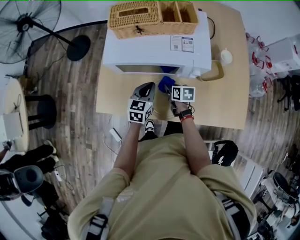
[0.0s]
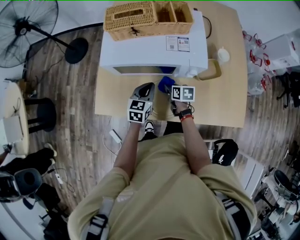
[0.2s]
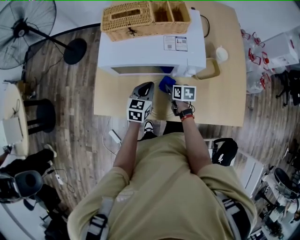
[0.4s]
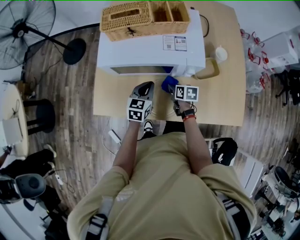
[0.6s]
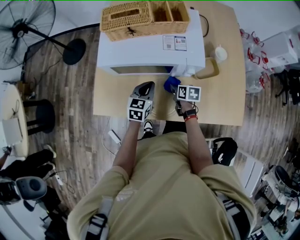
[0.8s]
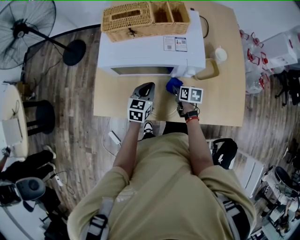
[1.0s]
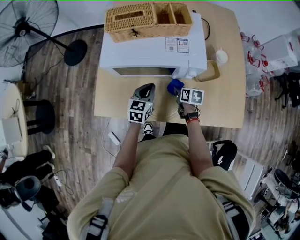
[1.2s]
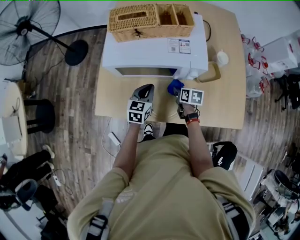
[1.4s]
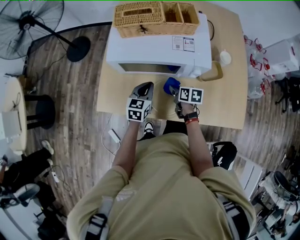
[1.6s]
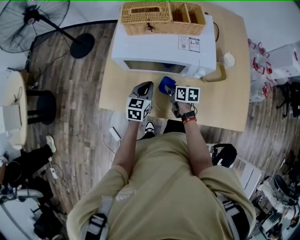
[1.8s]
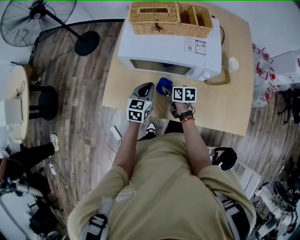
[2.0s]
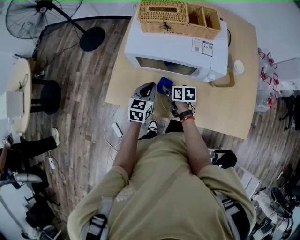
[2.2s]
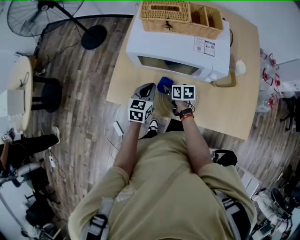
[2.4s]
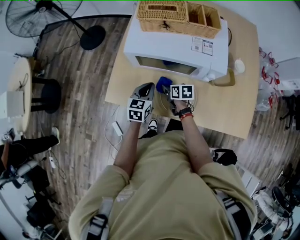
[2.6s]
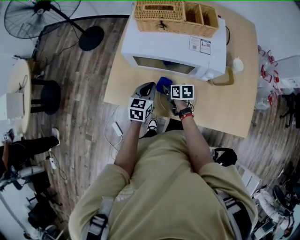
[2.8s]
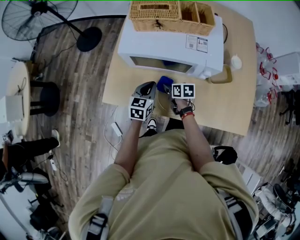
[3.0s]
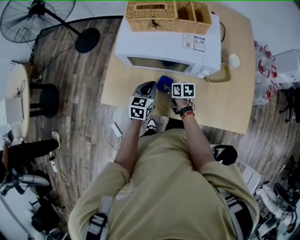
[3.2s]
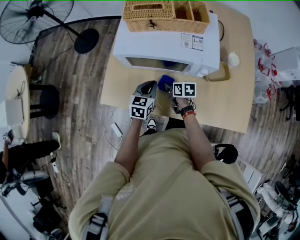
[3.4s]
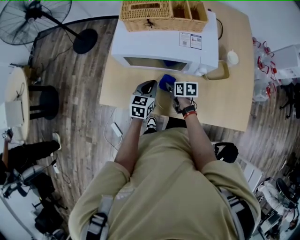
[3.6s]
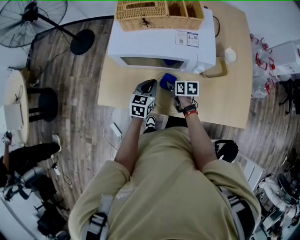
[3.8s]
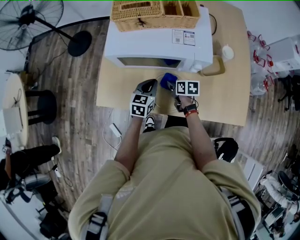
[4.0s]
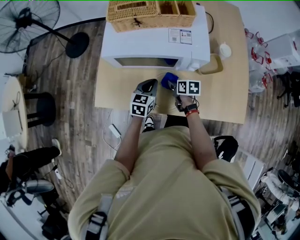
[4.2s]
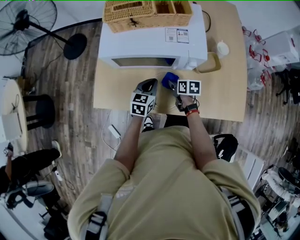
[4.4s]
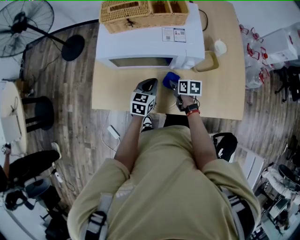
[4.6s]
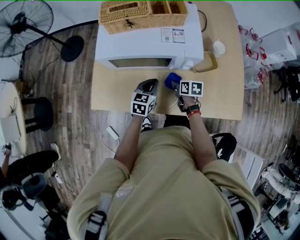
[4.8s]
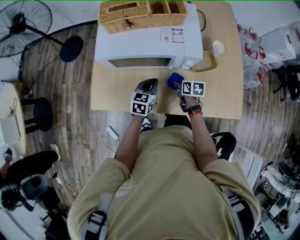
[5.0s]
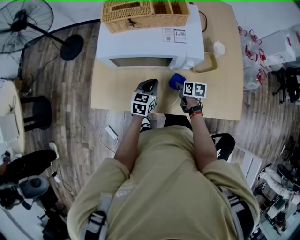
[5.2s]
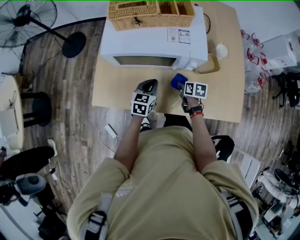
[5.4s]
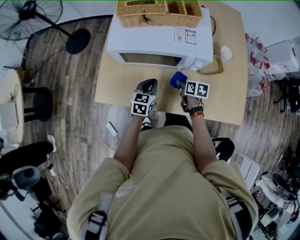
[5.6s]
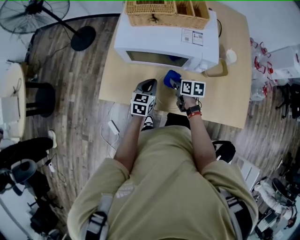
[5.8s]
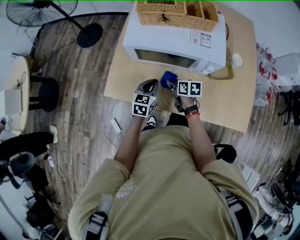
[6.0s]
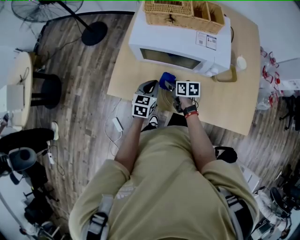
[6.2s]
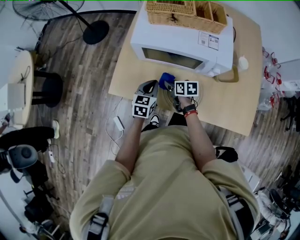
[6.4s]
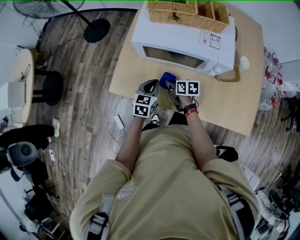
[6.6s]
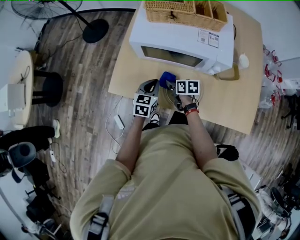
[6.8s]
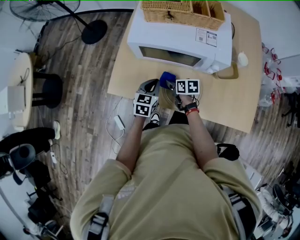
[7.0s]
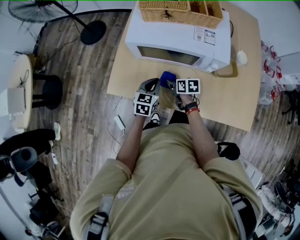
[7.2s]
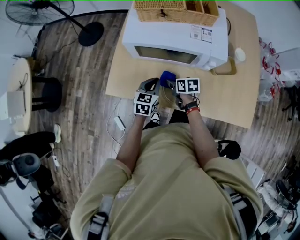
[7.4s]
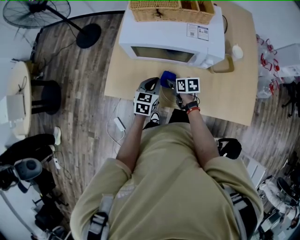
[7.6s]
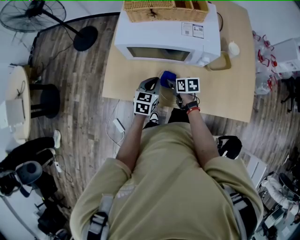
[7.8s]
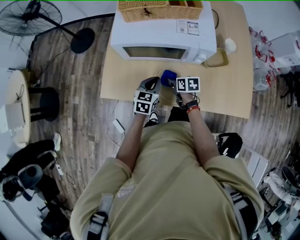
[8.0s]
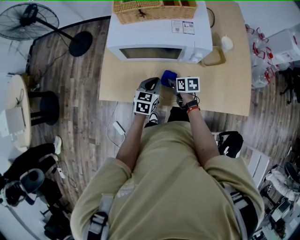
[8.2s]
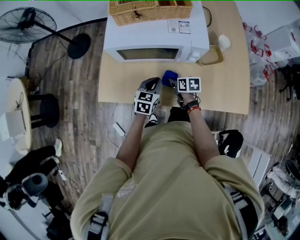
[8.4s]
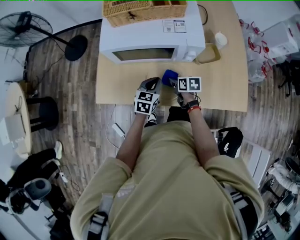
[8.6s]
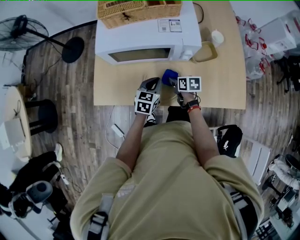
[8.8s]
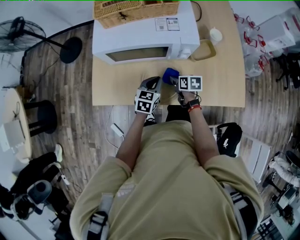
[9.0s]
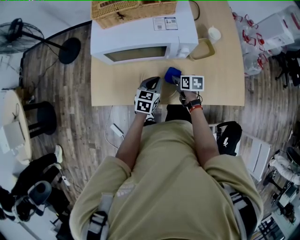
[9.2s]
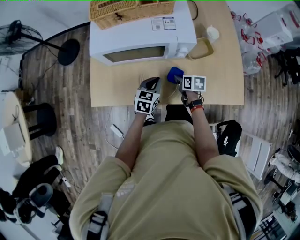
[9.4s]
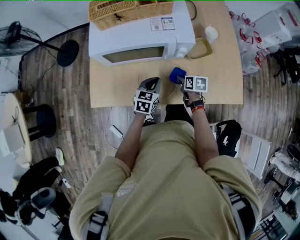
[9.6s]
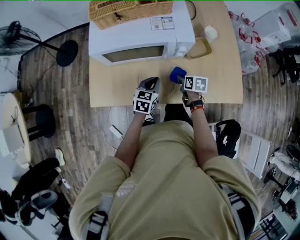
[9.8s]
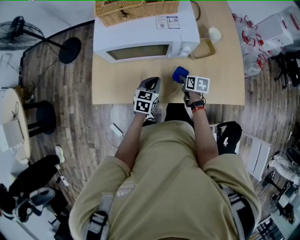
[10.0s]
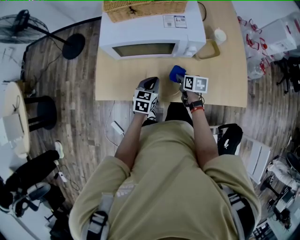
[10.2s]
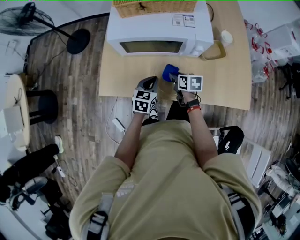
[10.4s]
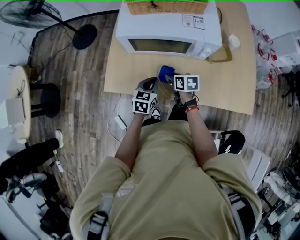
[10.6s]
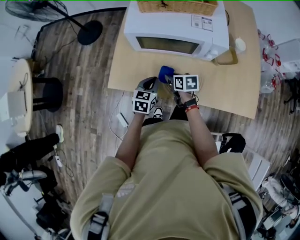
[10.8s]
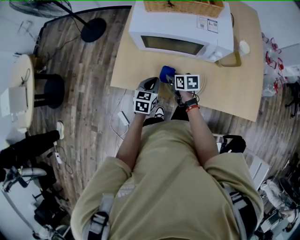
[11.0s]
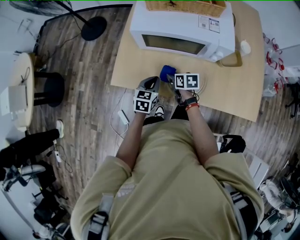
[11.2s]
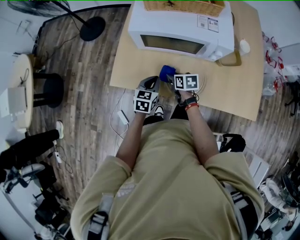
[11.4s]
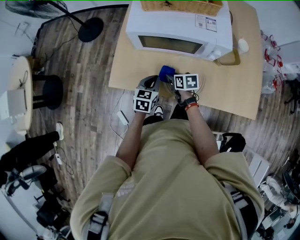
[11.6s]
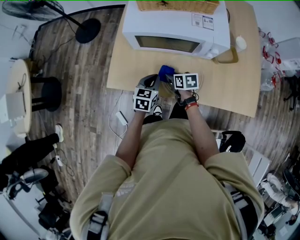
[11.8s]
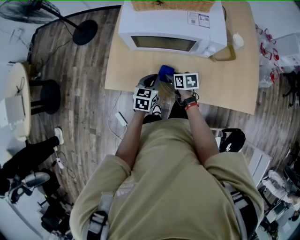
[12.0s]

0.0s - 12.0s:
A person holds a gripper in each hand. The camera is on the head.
1.6s - 3.0s: The right gripper is displaced to the left by about 10 cm.
3.0s - 4.4s: Both grippers move to the right, roughly 10 cm.
4.4s - 6.0s: Both grippers travel together to the left, roughly 10 cm.
6.0s - 7.6s: There are only small adjustments of the grippers.
7.6s - 9.0s: Both grippers move to the right, some 10 cm.
9.0s - 10.4s: Both grippers move to the left, some 5 cm.
10.4s - 12.0s: The right gripper moves to the left, roughly 5 cm.

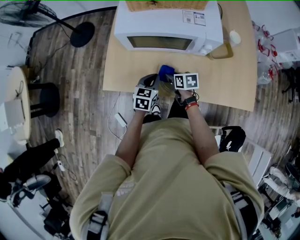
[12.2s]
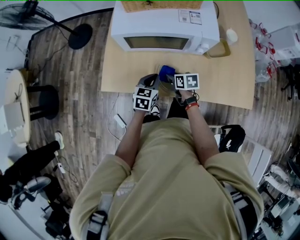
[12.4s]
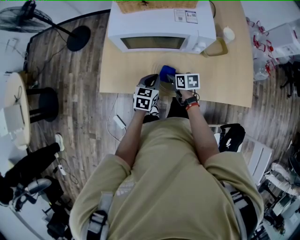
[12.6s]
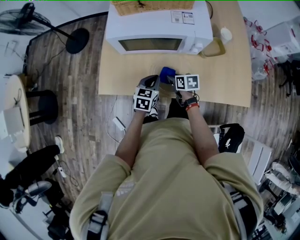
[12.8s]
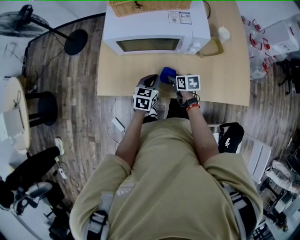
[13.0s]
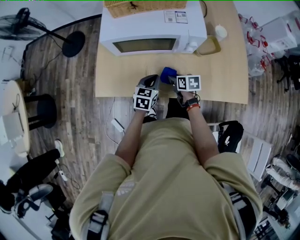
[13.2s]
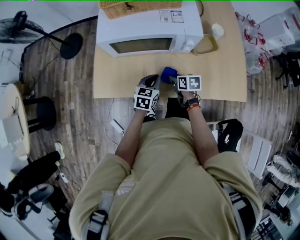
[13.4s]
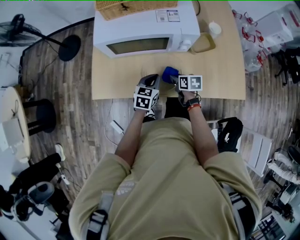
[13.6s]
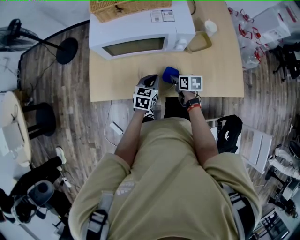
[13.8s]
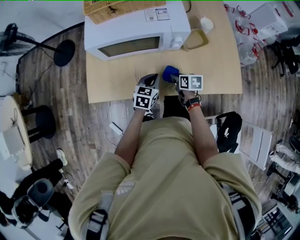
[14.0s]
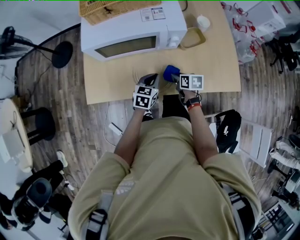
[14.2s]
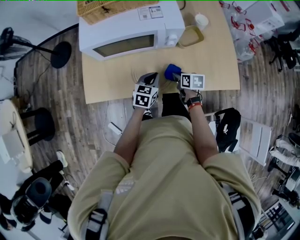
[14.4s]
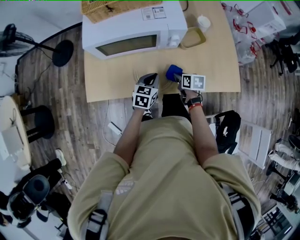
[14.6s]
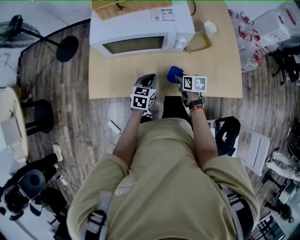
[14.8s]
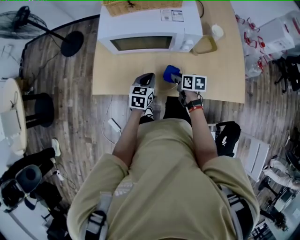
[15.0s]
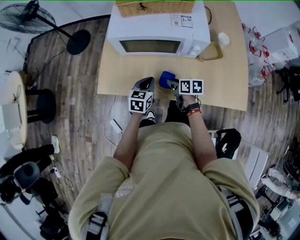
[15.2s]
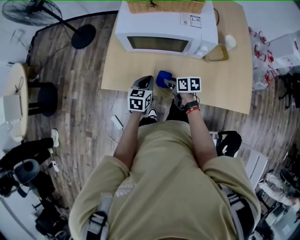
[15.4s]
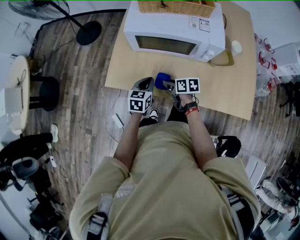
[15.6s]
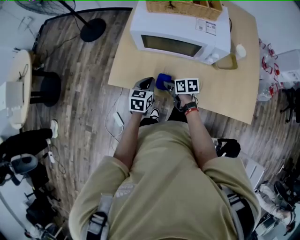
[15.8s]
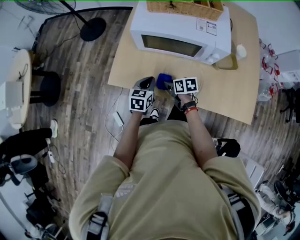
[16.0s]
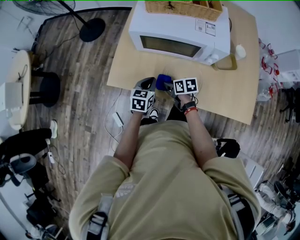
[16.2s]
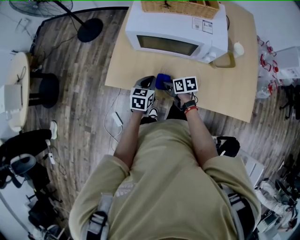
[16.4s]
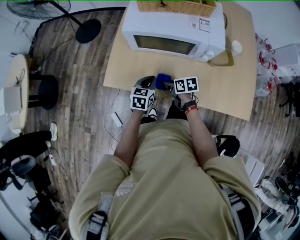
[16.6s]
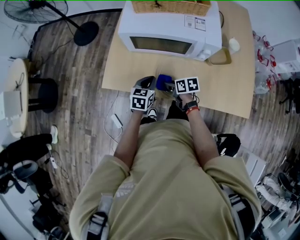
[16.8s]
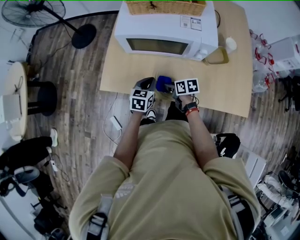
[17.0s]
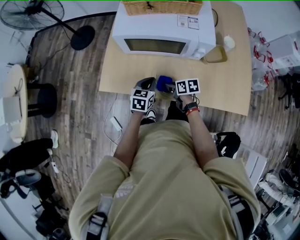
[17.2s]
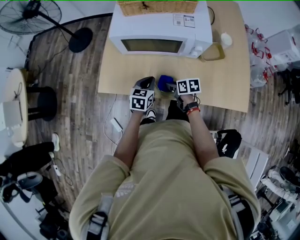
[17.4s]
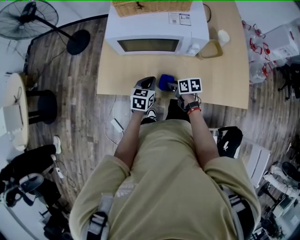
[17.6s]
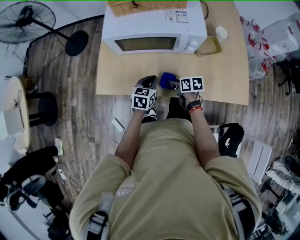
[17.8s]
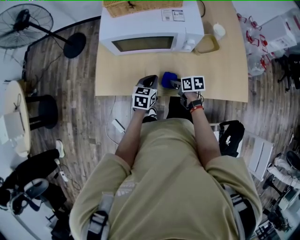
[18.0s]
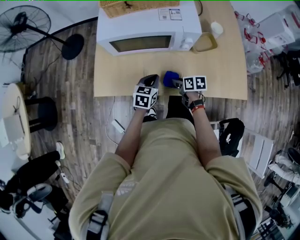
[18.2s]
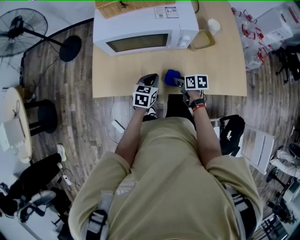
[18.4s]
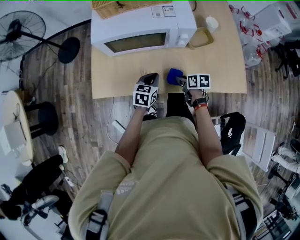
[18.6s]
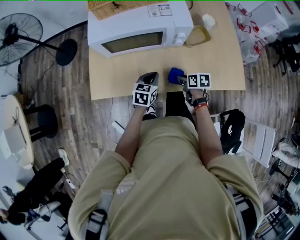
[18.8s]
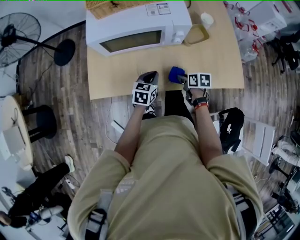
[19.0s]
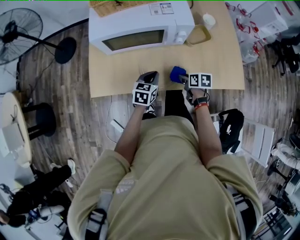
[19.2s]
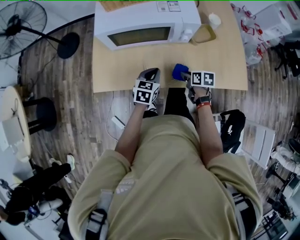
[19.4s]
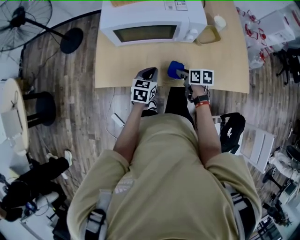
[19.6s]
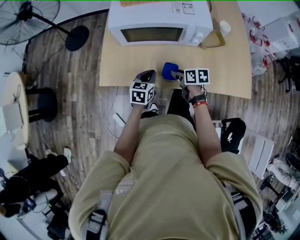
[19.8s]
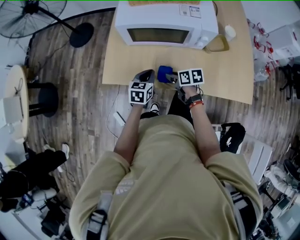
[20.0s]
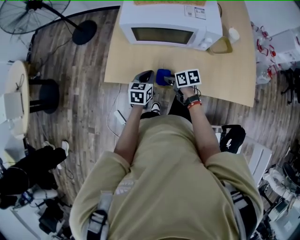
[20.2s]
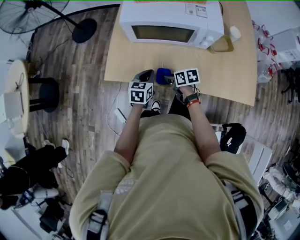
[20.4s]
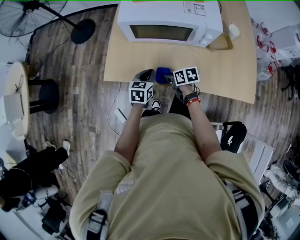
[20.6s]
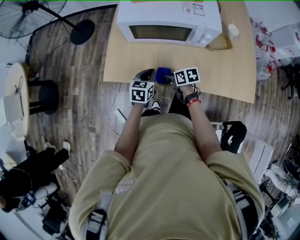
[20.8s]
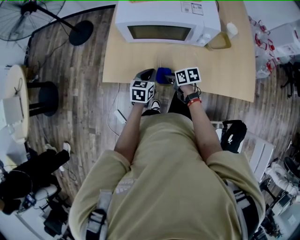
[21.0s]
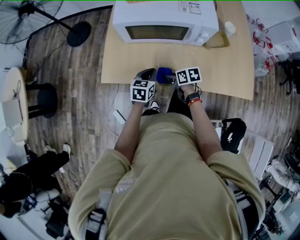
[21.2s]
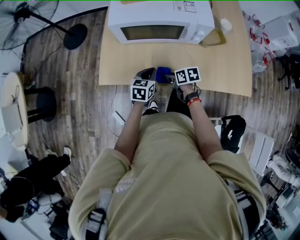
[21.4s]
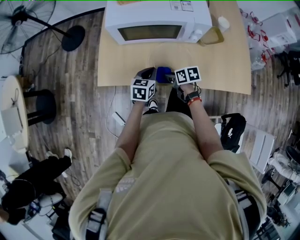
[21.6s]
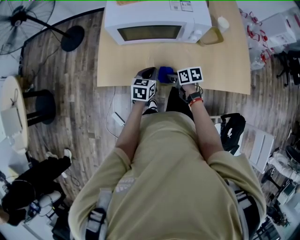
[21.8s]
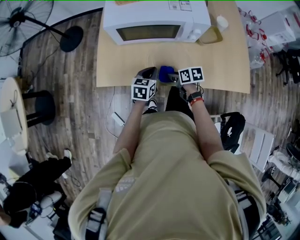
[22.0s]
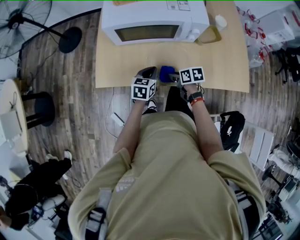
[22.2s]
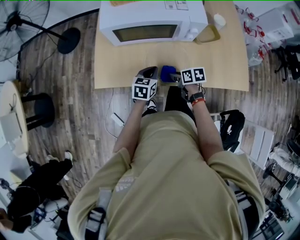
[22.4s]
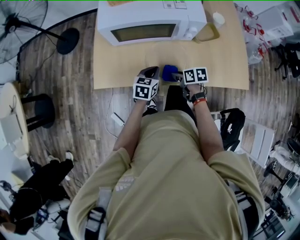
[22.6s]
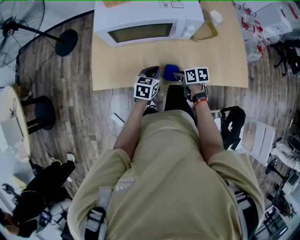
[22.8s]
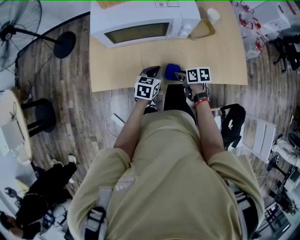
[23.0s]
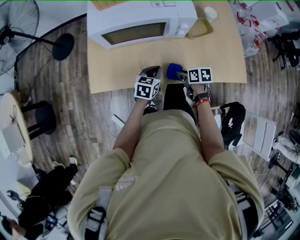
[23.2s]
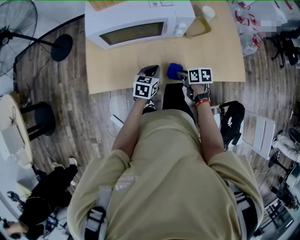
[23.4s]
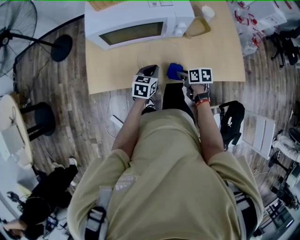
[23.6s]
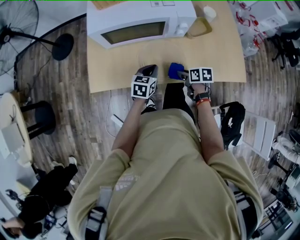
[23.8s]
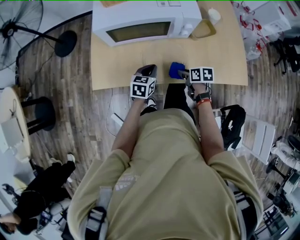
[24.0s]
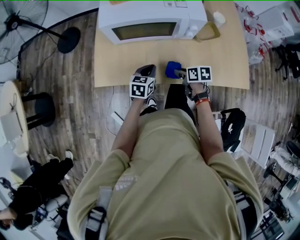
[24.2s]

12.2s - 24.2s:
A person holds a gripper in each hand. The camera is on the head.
12.2s - 13.8s: Both grippers move to the right, about 10 cm.
13.8s - 15.2s: Both grippers move to the left, some 10 cm.
15.2s - 16.6s: The right gripper shifts roughly 5 cm to the left.
16.6s - 18.2s: Both grippers travel together to the right, approximately 10 cm.
18.2s - 19.8s: Both grippers travel together to the left, roughly 5 cm.
19.8s - 21.2s: The right gripper is displaced to the left by some 5 cm.
21.2s - 22.6s: The grippers both shift to the right by roughly 5 cm.
